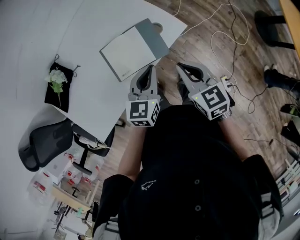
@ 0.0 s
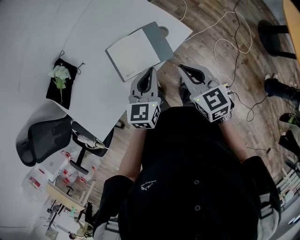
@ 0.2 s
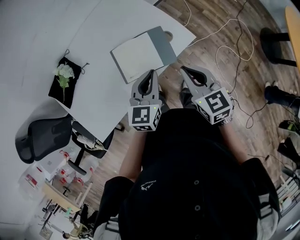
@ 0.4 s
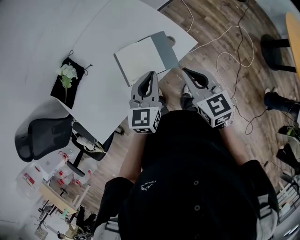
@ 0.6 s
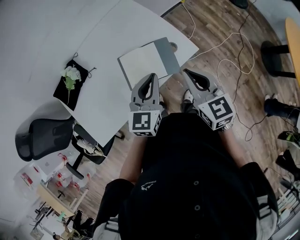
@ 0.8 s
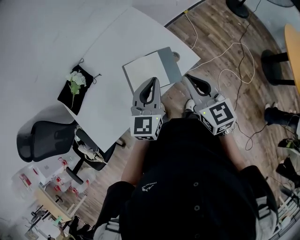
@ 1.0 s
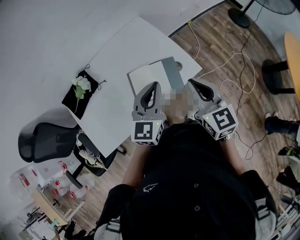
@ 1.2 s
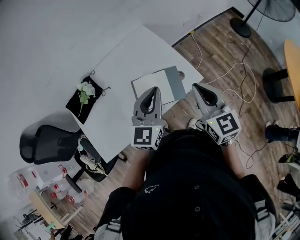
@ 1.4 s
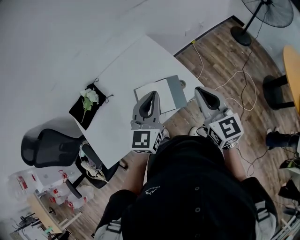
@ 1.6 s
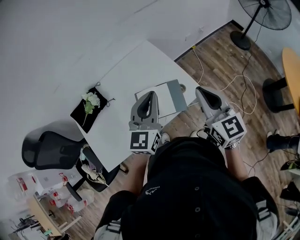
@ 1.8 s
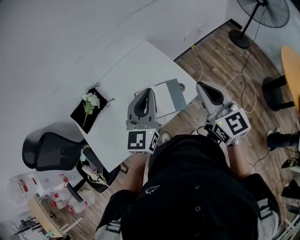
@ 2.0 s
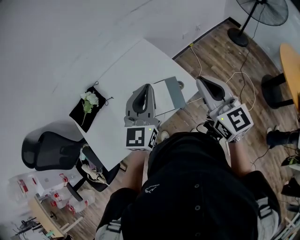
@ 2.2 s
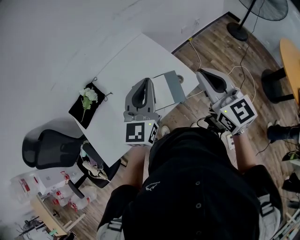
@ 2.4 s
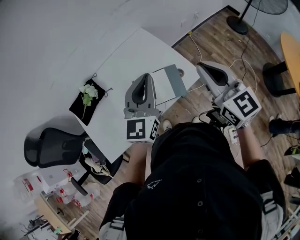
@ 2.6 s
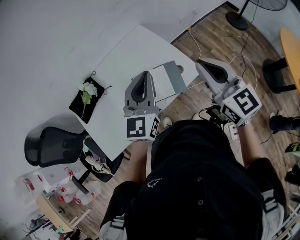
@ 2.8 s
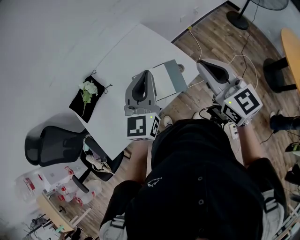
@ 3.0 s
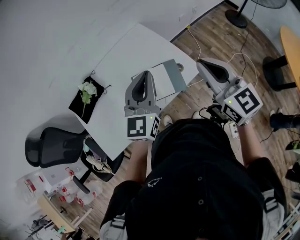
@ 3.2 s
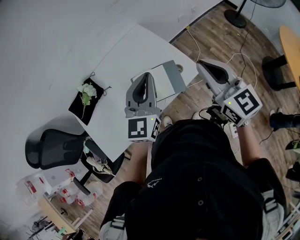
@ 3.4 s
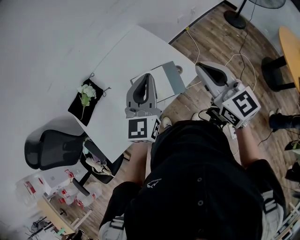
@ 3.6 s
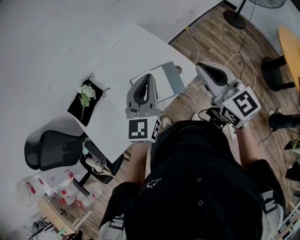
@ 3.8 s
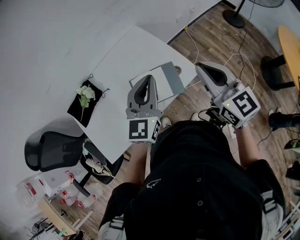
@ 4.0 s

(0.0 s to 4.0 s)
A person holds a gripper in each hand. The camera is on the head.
0.0 s - 1.4 s: Both grippers move upward, some 15 cm. The left gripper swivels some 20 degrees, while the right gripper changes its angle by approximately 20 degrees.
1.4 s - 2.6 s: The two grippers go approximately 10 cm upward.
2.6 s - 4.0 s: The grippers move only a little.

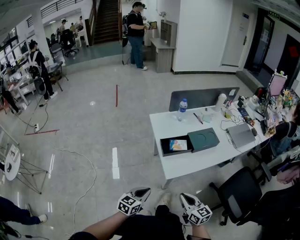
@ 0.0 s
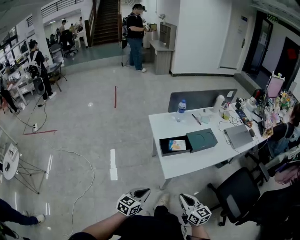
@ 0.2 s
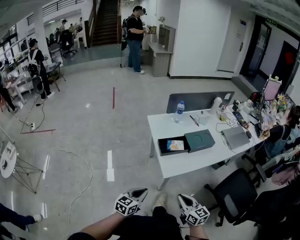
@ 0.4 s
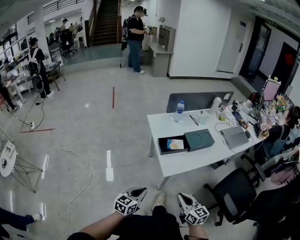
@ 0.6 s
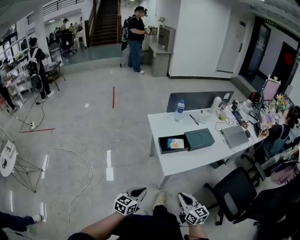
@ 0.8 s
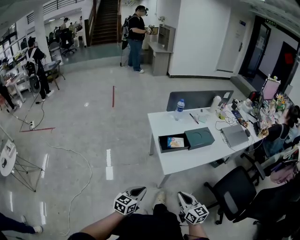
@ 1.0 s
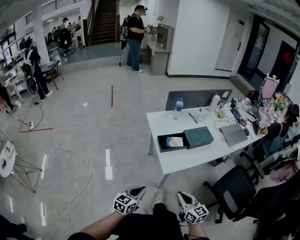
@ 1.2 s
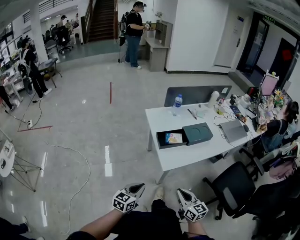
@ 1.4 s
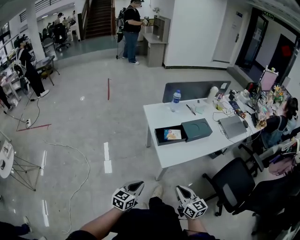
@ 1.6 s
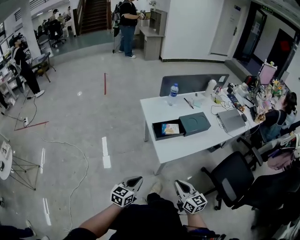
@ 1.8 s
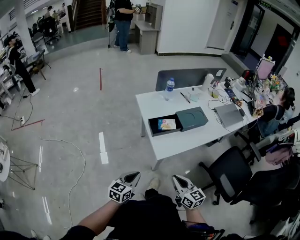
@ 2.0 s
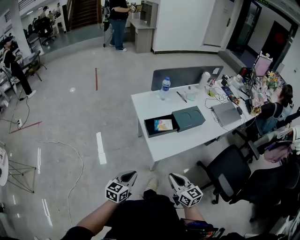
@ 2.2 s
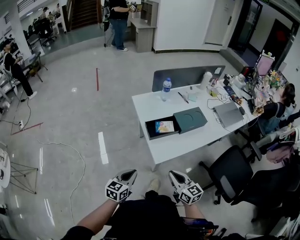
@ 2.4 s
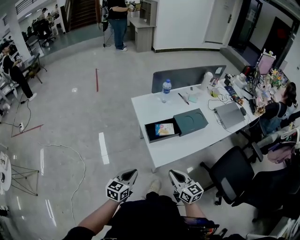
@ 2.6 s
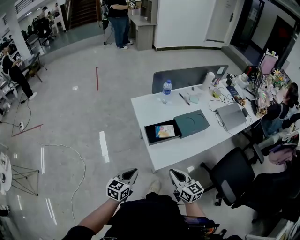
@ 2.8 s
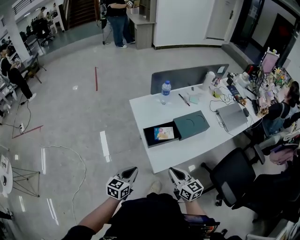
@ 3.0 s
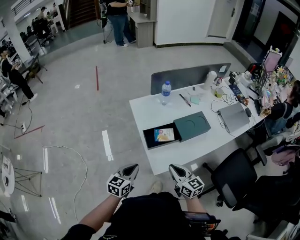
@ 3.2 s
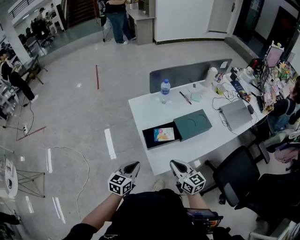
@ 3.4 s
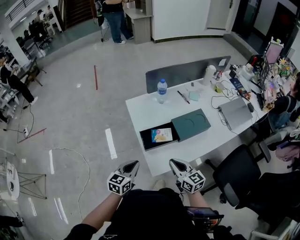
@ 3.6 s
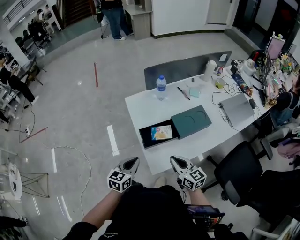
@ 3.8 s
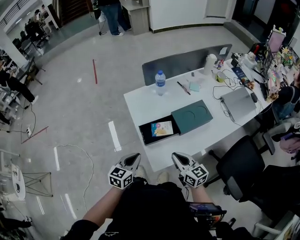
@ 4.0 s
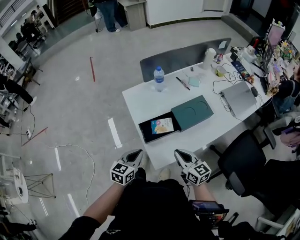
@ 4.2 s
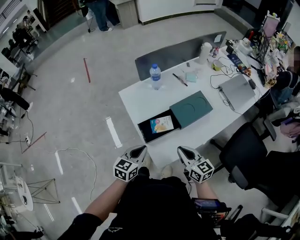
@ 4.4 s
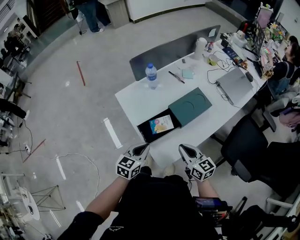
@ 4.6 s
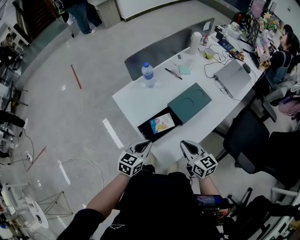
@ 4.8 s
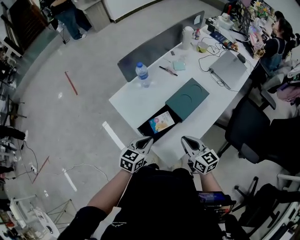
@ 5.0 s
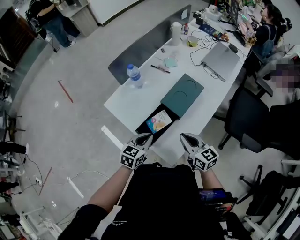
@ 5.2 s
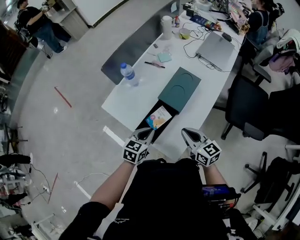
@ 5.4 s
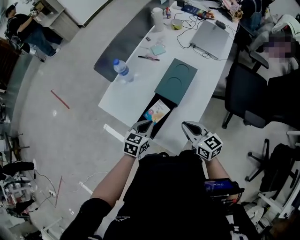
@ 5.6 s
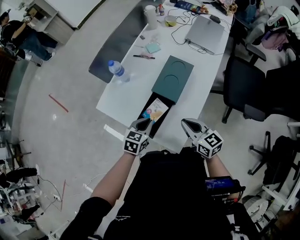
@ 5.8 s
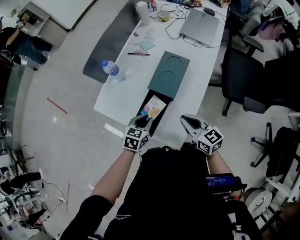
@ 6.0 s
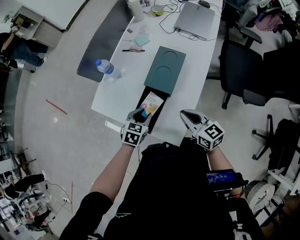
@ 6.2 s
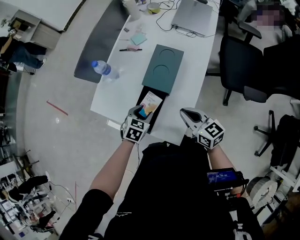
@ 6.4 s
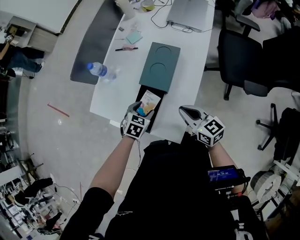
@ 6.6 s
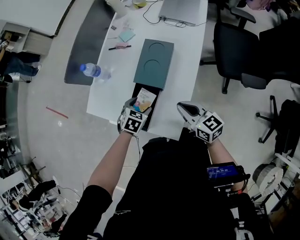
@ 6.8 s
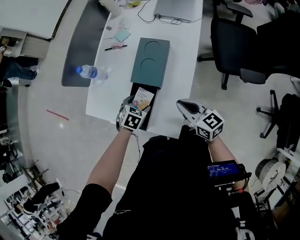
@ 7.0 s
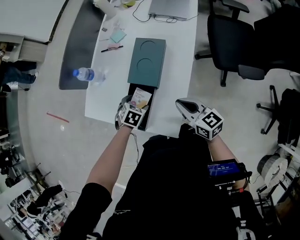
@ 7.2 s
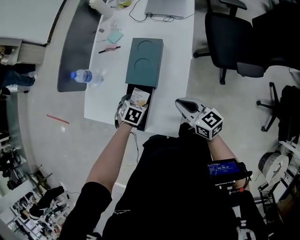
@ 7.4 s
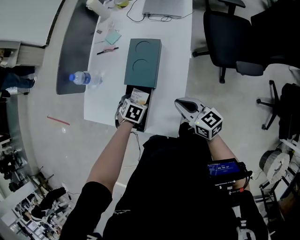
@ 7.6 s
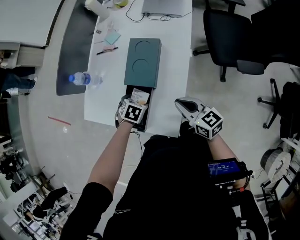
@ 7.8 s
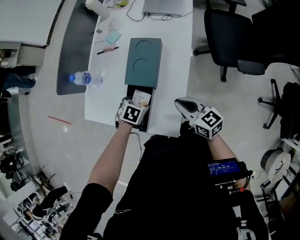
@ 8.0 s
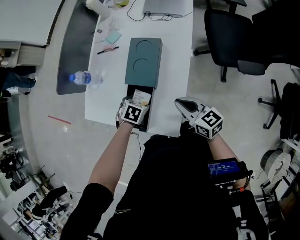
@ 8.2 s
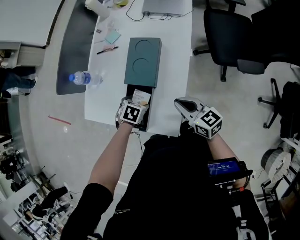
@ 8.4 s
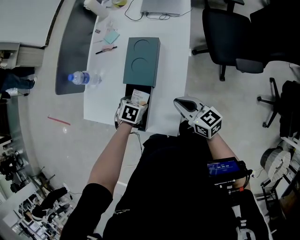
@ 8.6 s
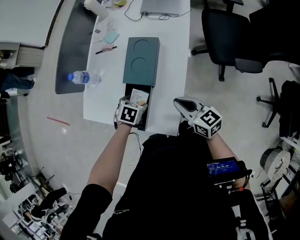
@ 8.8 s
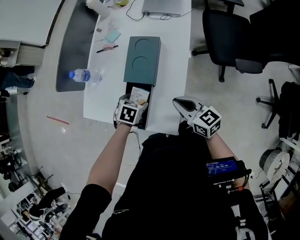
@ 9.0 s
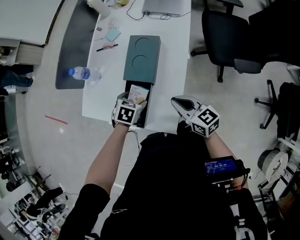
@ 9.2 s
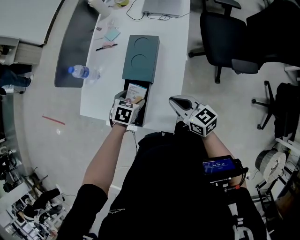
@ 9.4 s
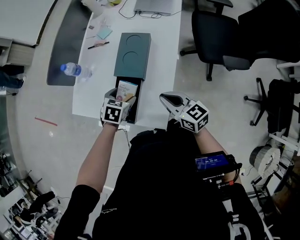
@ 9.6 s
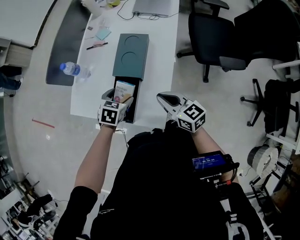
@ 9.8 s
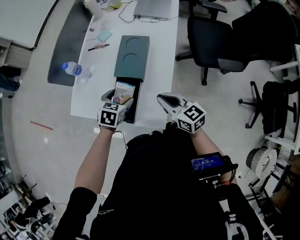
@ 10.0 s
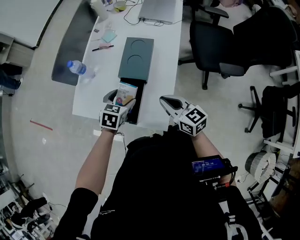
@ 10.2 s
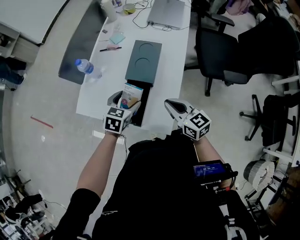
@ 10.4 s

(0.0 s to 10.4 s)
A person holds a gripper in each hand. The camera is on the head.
0.0 s - 1.4 s: The left gripper changes place by approximately 5 cm; the right gripper ends up some 5 cm from where it was.
1.4 s - 3.0 s: The grippers both shift forward by roughly 15 cm.
3.0 s - 4.4 s: Both grippers move forward and to the right, about 10 cm.
4.4 s - 6.0 s: The left gripper ends up roughly 15 cm from where it was, and changes its angle by some 40 degrees. Meanwhile the right gripper turns by roughly 30 degrees.
6.0 s - 7.4 s: The left gripper goes approximately 10 cm downward, changes its angle by approximately 30 degrees, and opens.
7.4 s - 9.0 s: There are only small adjustments of the grippers.
9.0 s - 10.4 s: The left gripper heads upward, covering approximately 10 cm, and changes its angle by approximately 30 degrees.

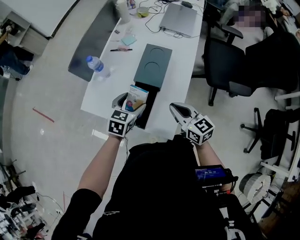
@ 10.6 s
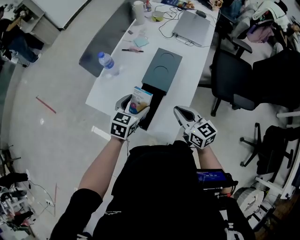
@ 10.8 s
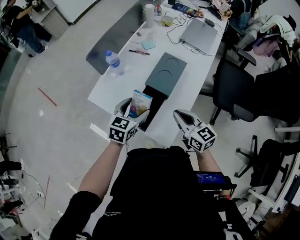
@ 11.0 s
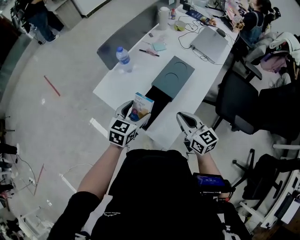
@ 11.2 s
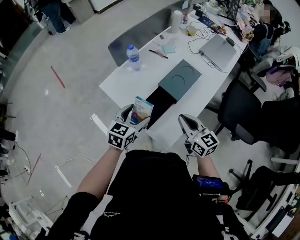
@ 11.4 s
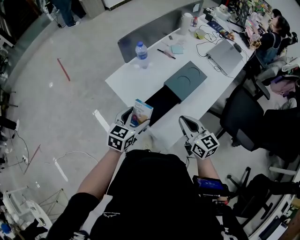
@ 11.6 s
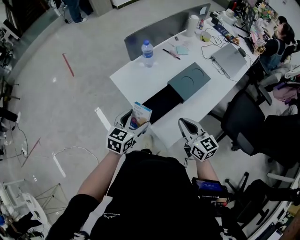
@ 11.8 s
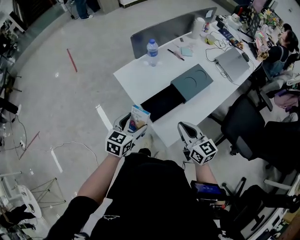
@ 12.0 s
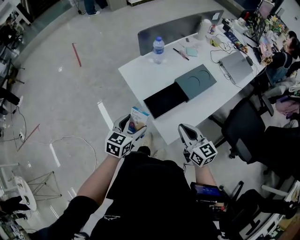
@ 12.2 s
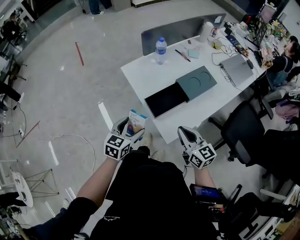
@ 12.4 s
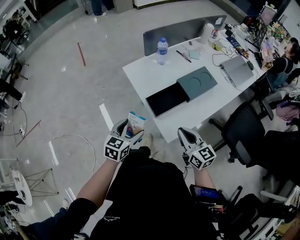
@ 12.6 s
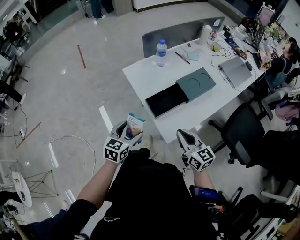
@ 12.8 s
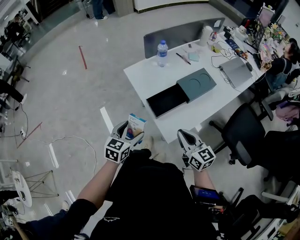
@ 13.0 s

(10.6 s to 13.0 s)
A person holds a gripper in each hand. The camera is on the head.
10.6 s - 11.8 s: The right gripper swivels approximately 20 degrees. The left gripper moves backward and to the left, approximately 15 cm, and turns by roughly 30 degrees.
11.8 s - 13.0 s: The grippers both shift backward by roughly 10 cm.

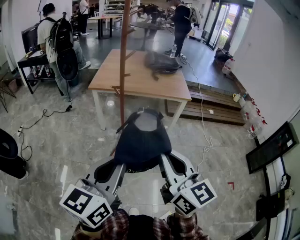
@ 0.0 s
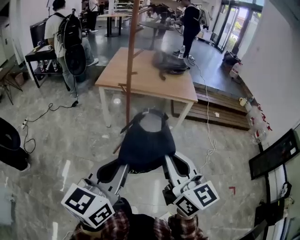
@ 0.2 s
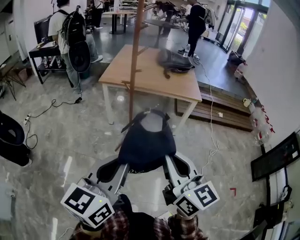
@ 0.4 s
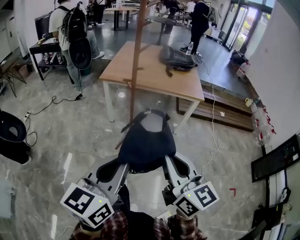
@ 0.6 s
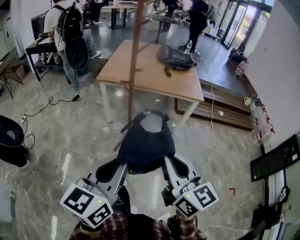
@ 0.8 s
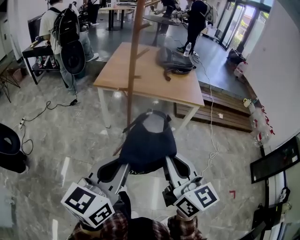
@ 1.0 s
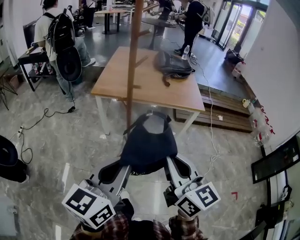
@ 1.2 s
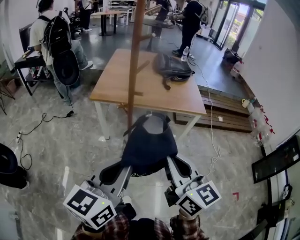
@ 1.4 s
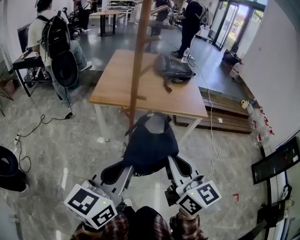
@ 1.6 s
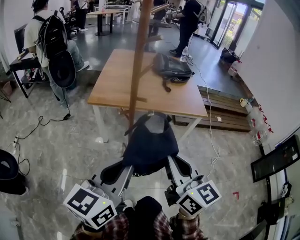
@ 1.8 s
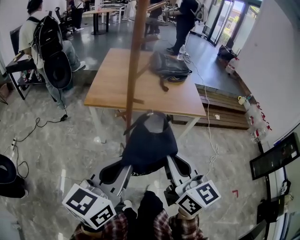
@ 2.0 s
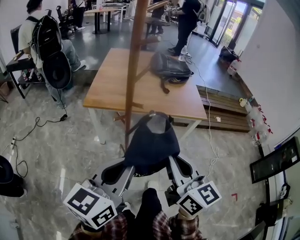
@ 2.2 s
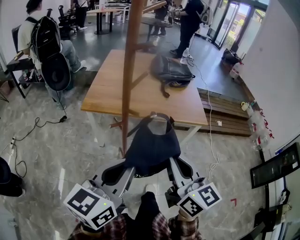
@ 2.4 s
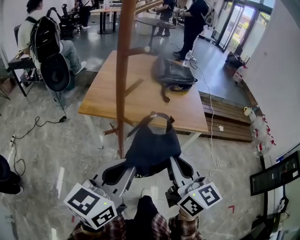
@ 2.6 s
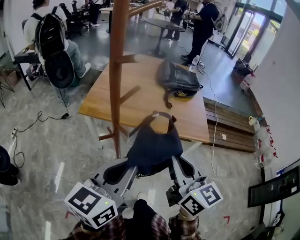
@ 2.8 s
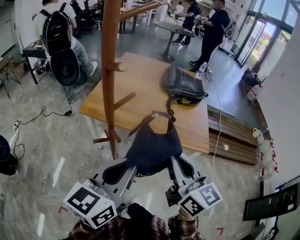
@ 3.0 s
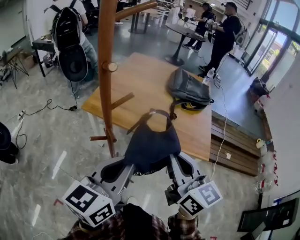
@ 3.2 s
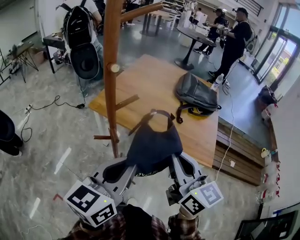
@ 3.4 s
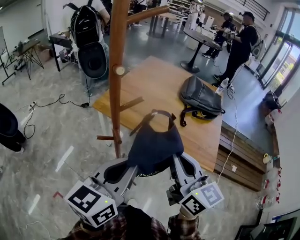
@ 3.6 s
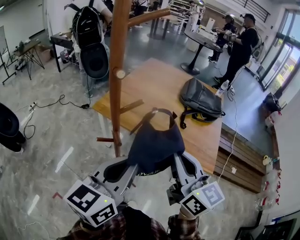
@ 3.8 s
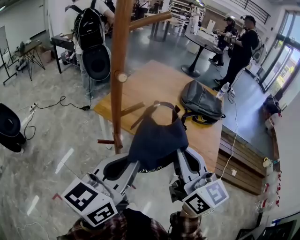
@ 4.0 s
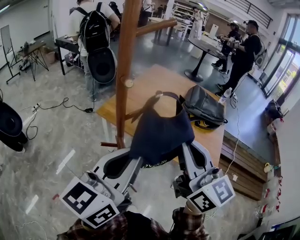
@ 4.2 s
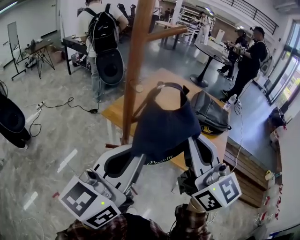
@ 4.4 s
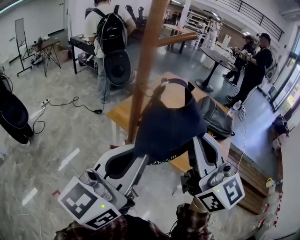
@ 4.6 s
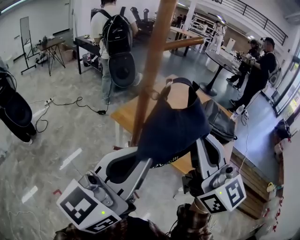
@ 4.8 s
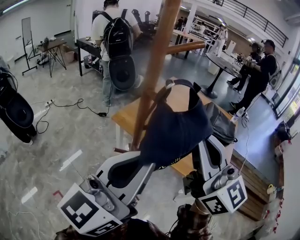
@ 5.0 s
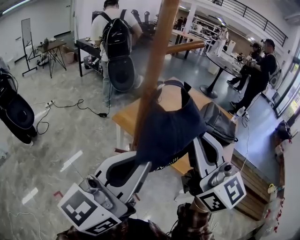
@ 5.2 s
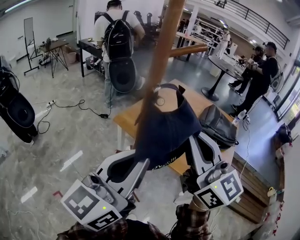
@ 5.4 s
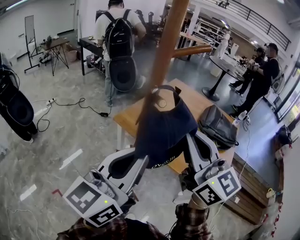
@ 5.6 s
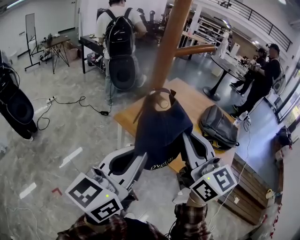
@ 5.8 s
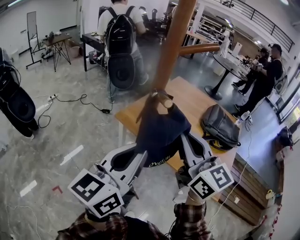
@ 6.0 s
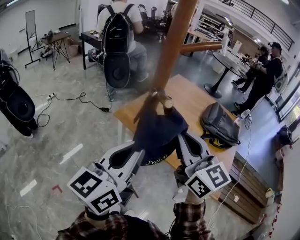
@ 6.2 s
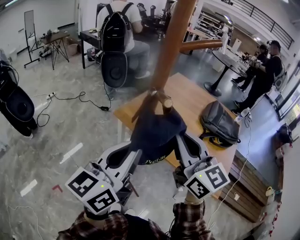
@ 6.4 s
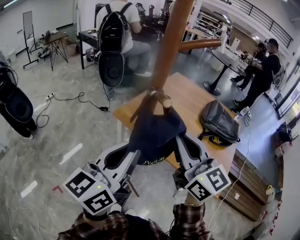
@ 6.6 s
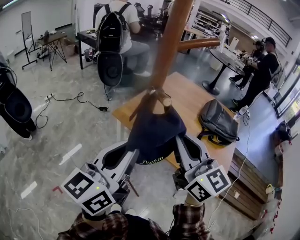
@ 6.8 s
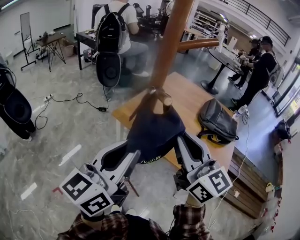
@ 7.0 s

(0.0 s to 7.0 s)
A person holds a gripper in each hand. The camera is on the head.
0.0 s - 1.4 s: The two grippers go about 20 cm forward.
1.4 s - 2.8 s: The grippers both shift forward by some 25 cm.
2.8 s - 4.2 s: The grippers both shift upward and forward by approximately 10 cm. The left gripper swivels some 20 degrees. The right gripper swivels approximately 20 degrees.
4.2 s - 5.6 s: The right gripper shifts about 5 cm to the left.
5.6 s - 7.0 s: The left gripper moves approximately 5 cm, while the right gripper moves downward, some 5 cm.
